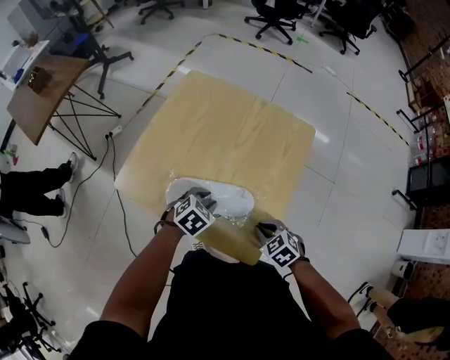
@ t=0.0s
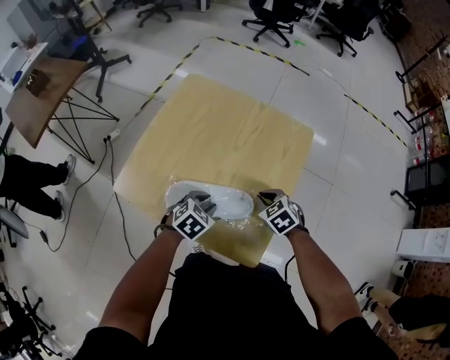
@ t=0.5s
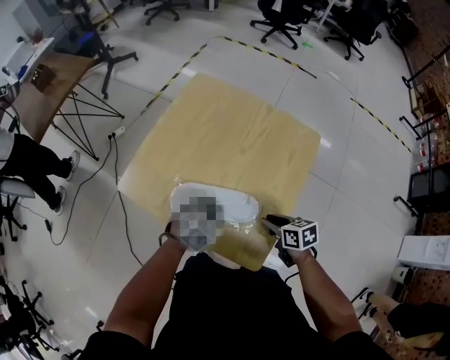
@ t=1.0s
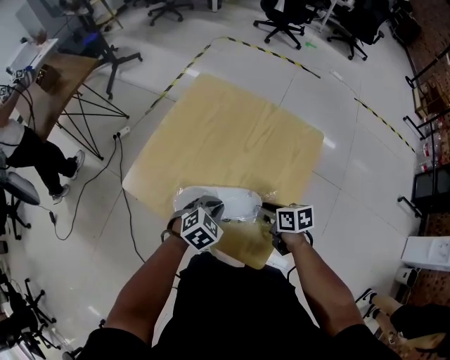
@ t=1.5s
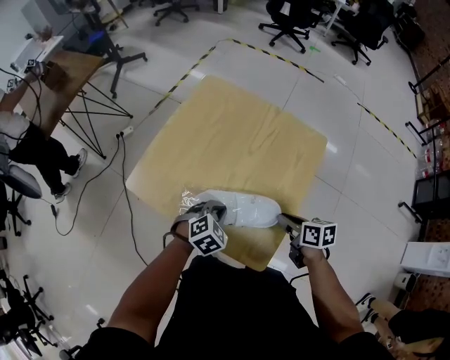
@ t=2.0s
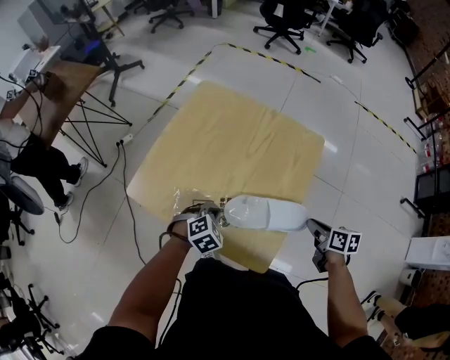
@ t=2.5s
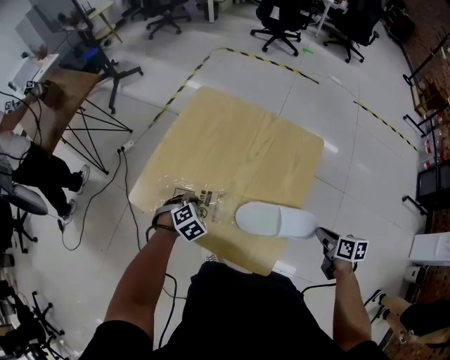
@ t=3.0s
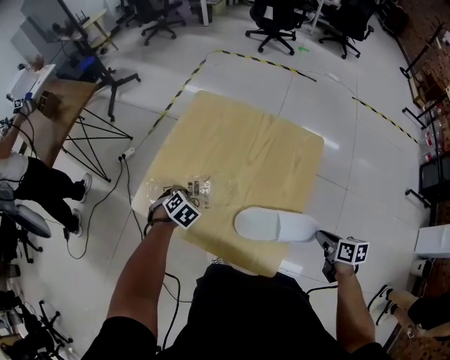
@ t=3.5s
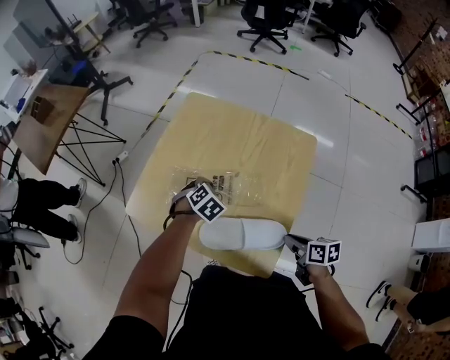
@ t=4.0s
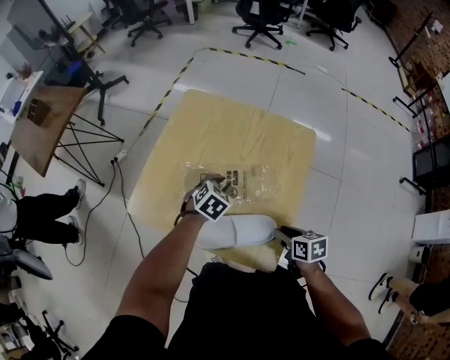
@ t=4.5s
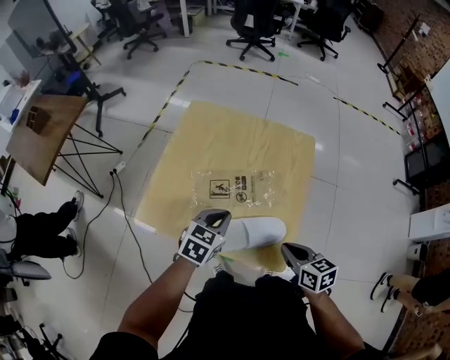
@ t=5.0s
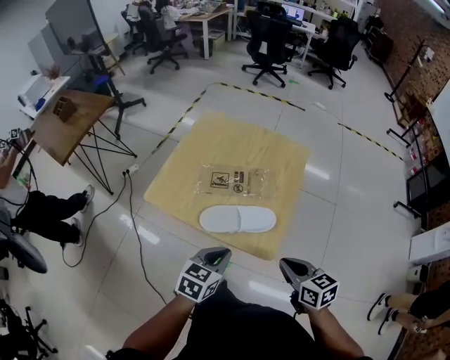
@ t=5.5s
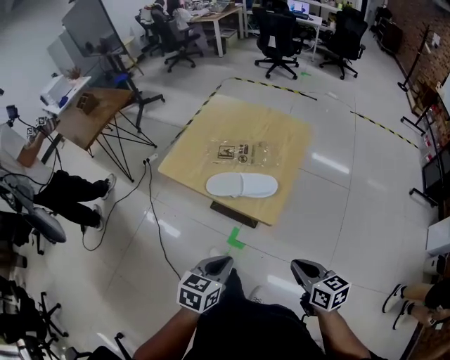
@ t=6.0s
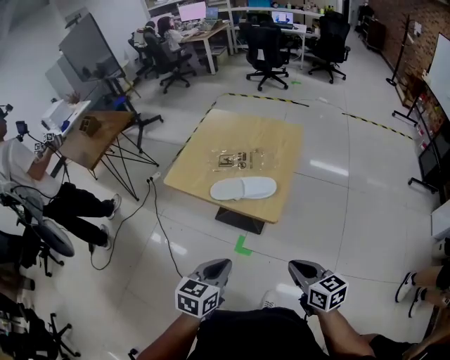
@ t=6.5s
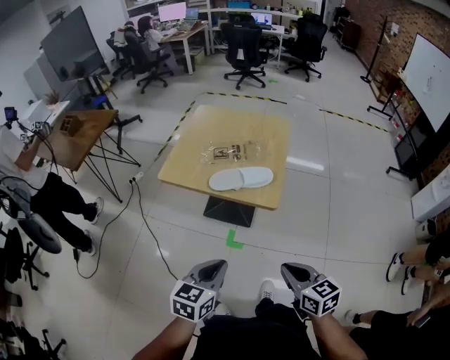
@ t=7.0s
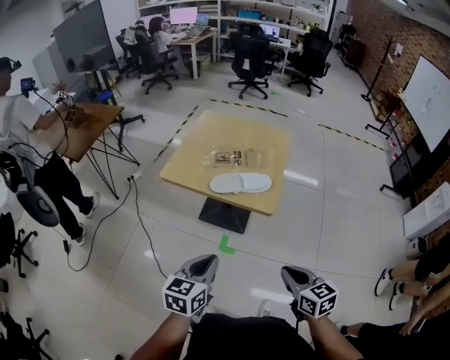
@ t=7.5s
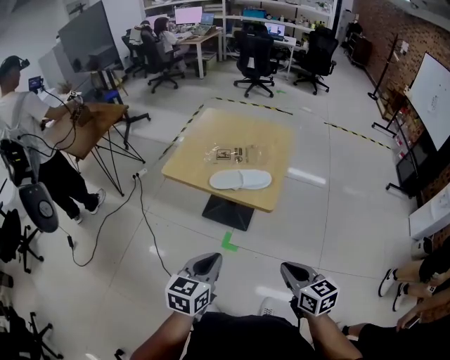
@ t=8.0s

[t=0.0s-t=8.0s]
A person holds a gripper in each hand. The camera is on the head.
t=0.0s to t=2.0s: The right gripper goes approximately 5 cm forward, rotates around the line of its fingers by some 50 degrees, clockwise from behind, and opens, then closes again. The left gripper closes.
t=2.0s to t=4.0s: The right gripper shifts about 5 cm backward, and reaches some 15 cm to the right, then returns. The left gripper shifts approximately 15 cm forward, and goes to the left and returns, some 15 cm each way.
t=4.0s to t=6.0s: The right gripper moves backward and upward, roughly 30 cm, and rotates approximately 30 degrees; the left gripper goes approximately 50 cm backward, rotates roughly 50 degrees, and opens, then closes again.
t=6.0s to t=8.0s: The grippers both shift backward, to the left and upward by approximately 15 cm.

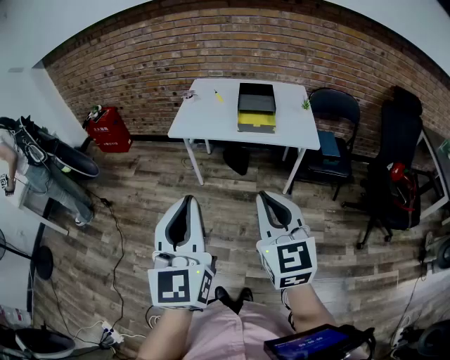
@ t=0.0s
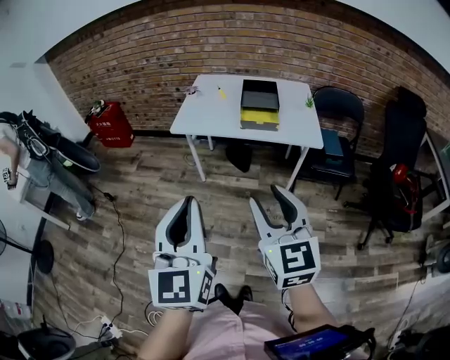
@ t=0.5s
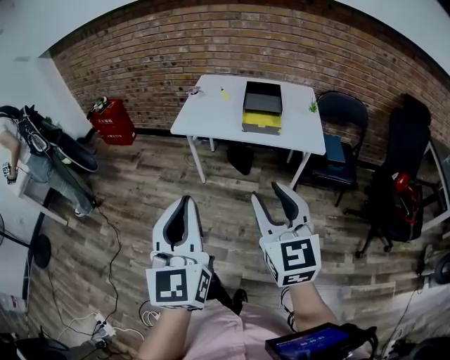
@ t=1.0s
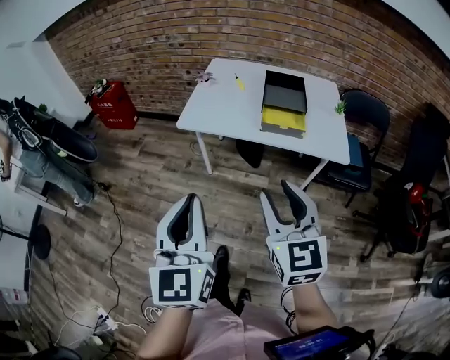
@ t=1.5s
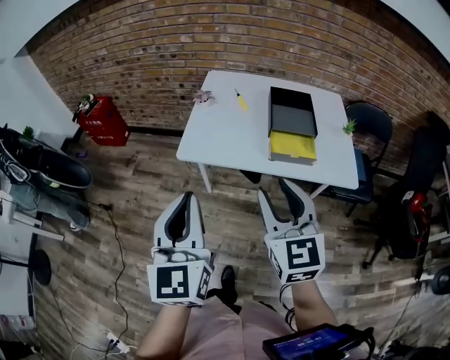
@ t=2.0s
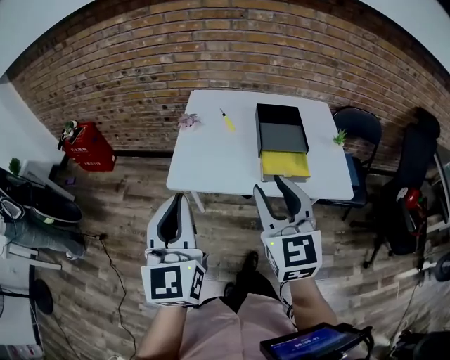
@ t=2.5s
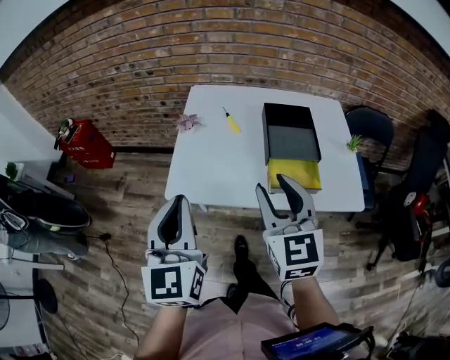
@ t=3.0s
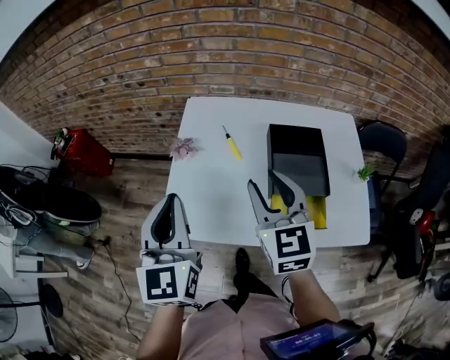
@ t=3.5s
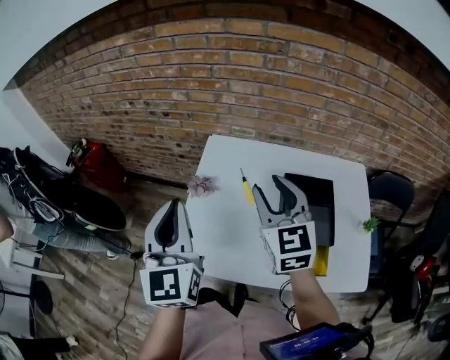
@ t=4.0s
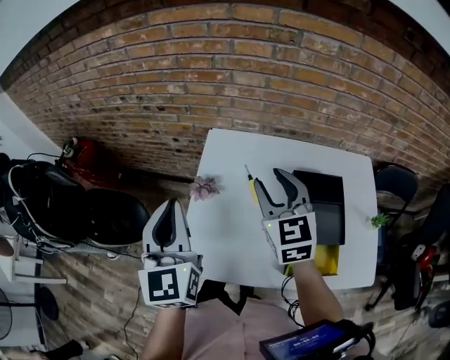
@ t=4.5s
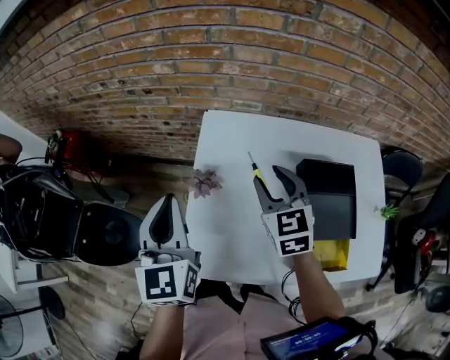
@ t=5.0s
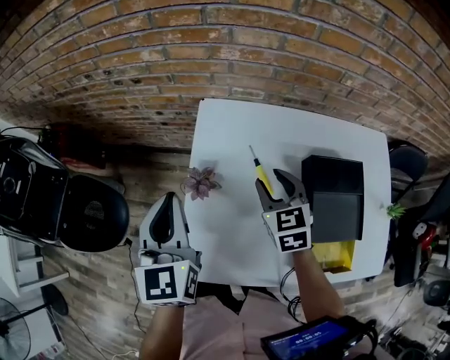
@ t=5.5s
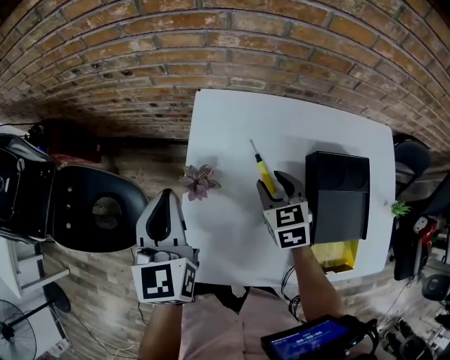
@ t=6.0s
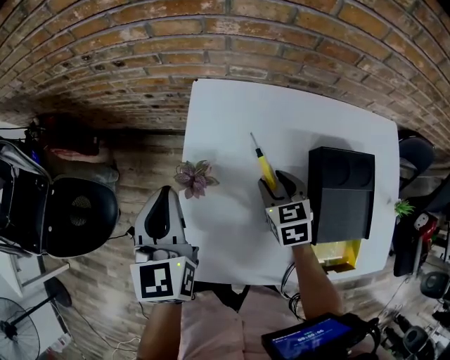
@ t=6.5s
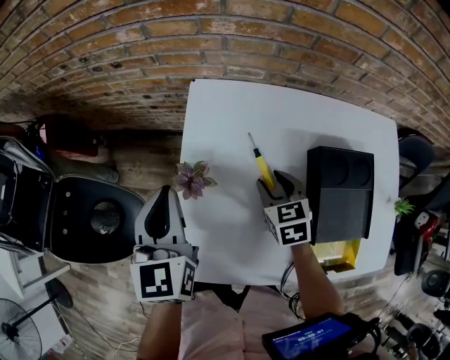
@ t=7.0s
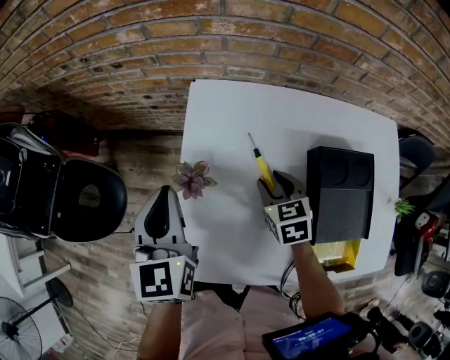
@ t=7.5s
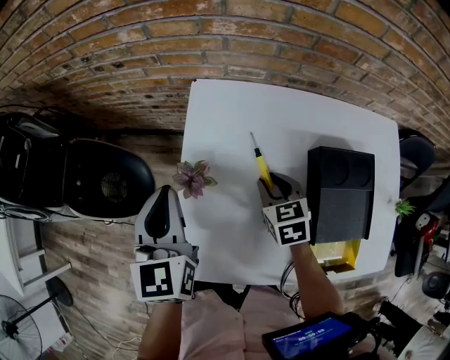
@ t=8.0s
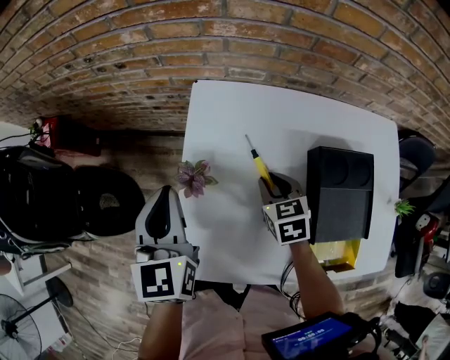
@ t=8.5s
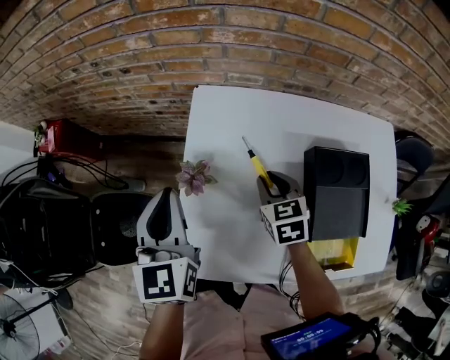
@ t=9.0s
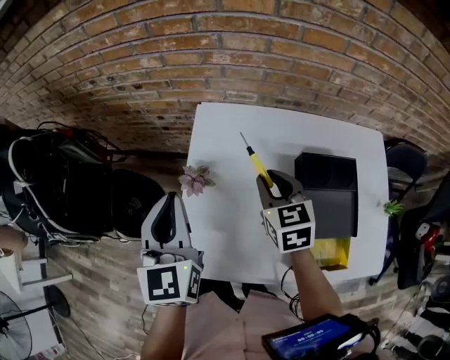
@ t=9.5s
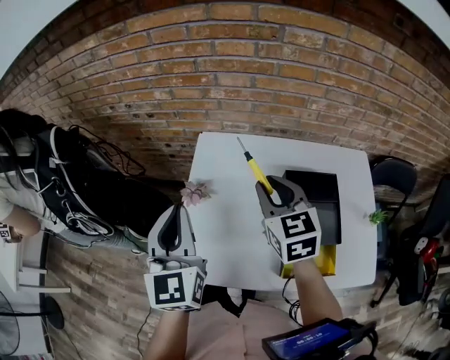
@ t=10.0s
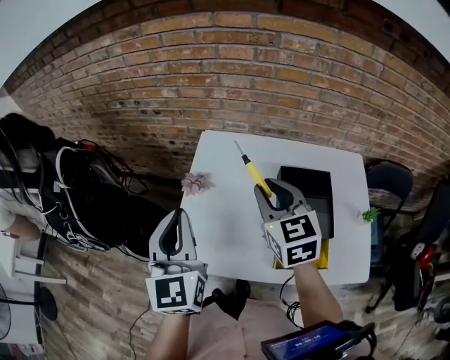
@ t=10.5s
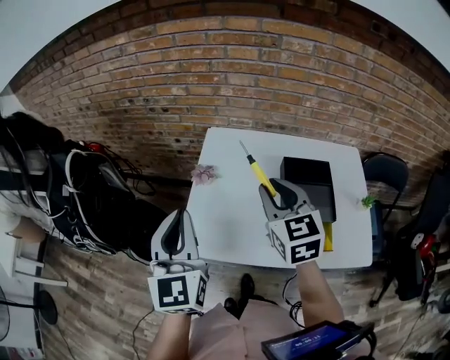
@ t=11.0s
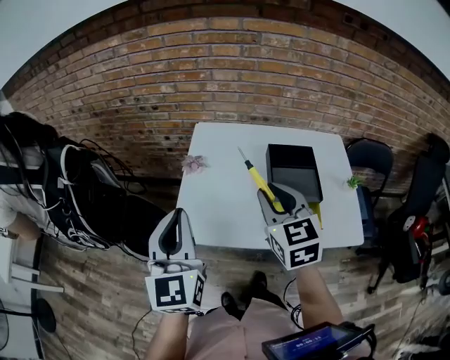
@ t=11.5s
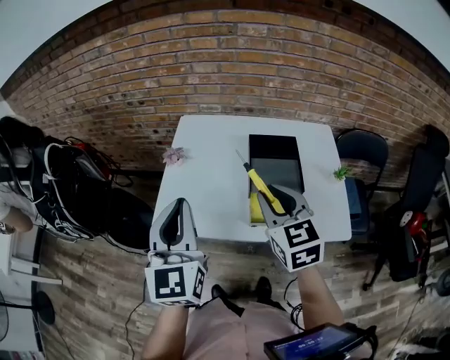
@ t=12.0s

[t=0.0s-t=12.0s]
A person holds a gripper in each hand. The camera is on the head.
t=0.0s to t=2.0s: The two grippers go some 30 cm forward. The right gripper opens.
t=2.0s to t=4.0s: The two grippers go about 40 cm forward.
t=4.0s to t=6.0s: The right gripper is displaced downward by roughly 25 cm, and tips its fingers downward by about 30 degrees. The left gripper goes roughly 20 cm forward and downward, and swivels about 20 degrees.
t=6.0s to t=8.0s: There are only small adjustments of the grippers.
t=8.0s to t=10.0s: The left gripper travels upward and backward by about 15 cm. The right gripper shifts about 25 cm upward, and swivels roughly 30 degrees.
t=10.0s to t=12.0s: The grippers both shift backward by about 20 cm.

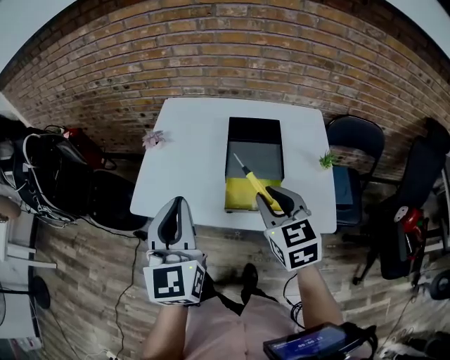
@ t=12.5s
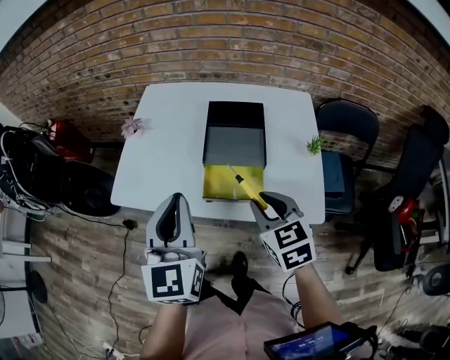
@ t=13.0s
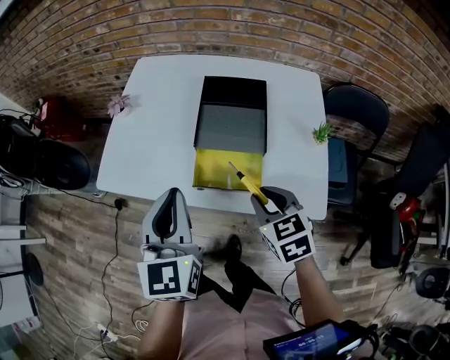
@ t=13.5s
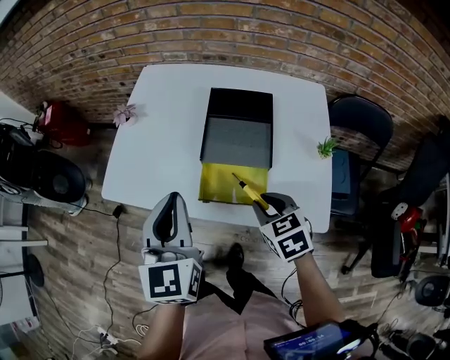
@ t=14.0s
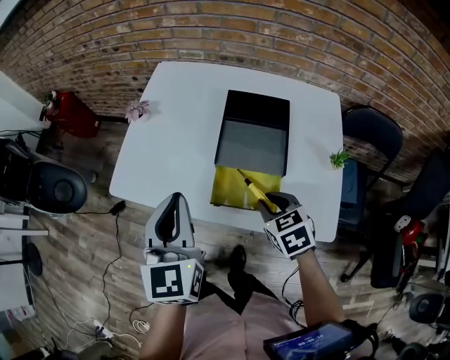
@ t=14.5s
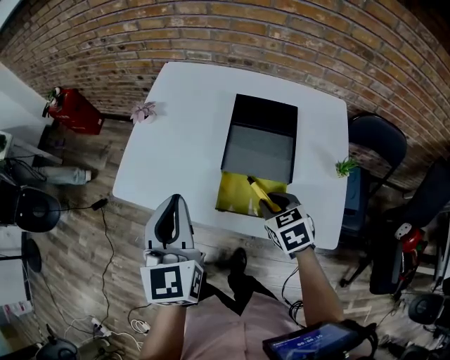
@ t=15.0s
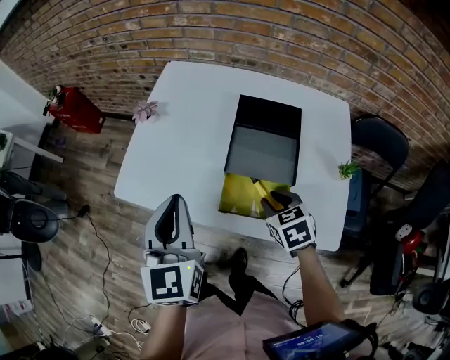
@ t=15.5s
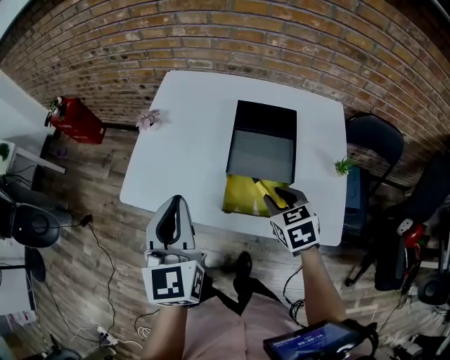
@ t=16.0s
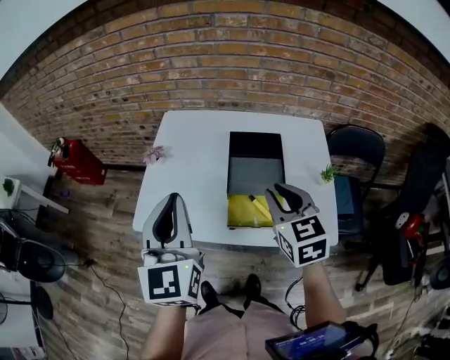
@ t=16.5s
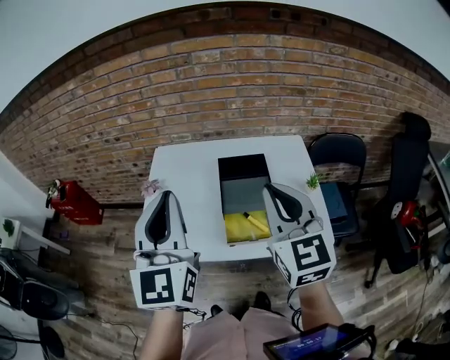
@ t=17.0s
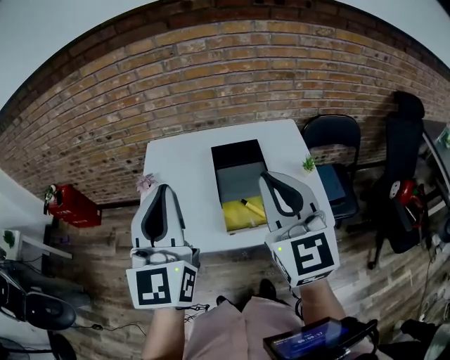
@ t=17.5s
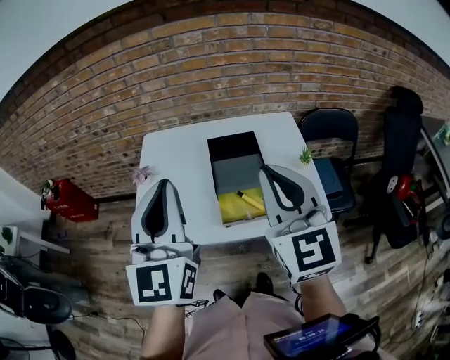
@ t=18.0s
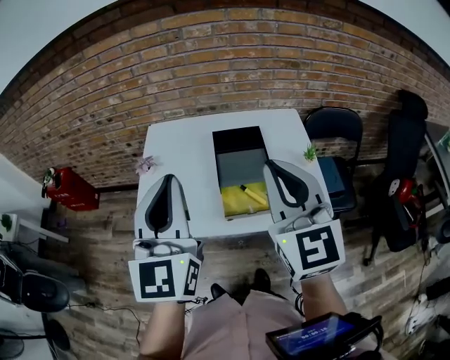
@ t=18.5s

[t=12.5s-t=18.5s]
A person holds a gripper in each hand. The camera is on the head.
t=12.5s to t=14.5s: The right gripper shifts roughly 15 cm downward, and swivels about 30 degrees. The left gripper goes about 10 cm downward.
t=14.5s to t=16.5s: The left gripper travels upward by some 10 cm; the right gripper heads upward, covering approximately 20 cm, and turns by approximately 30 degrees.
t=16.5s to t=18.5s: The right gripper moves upward and backward, roughly 20 cm, and rotates approximately 30 degrees. Meanwhile the left gripper shifts roughly 10 cm upward.
